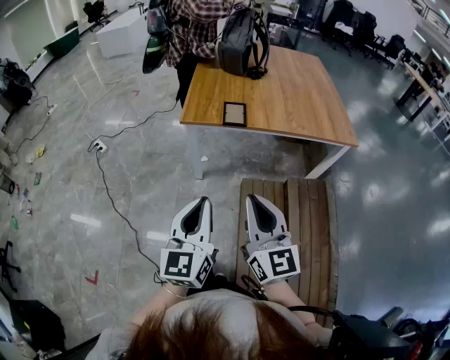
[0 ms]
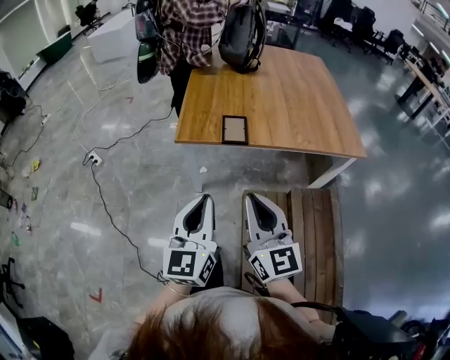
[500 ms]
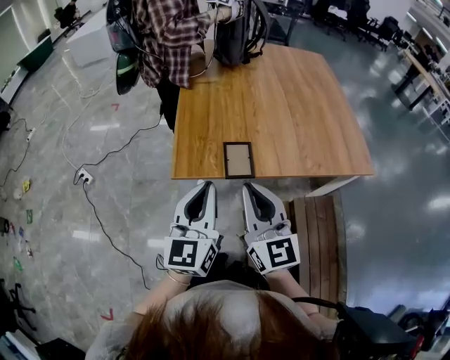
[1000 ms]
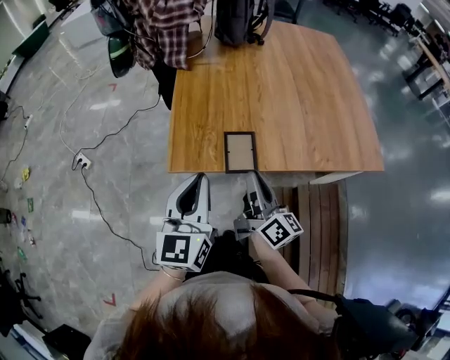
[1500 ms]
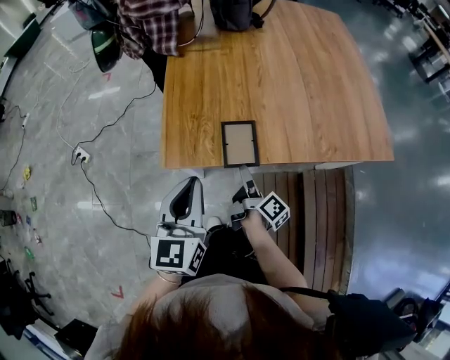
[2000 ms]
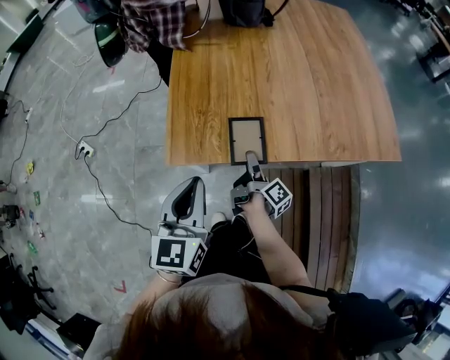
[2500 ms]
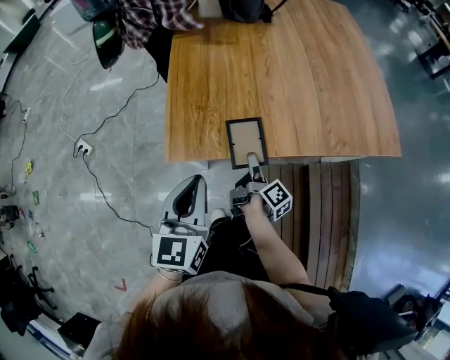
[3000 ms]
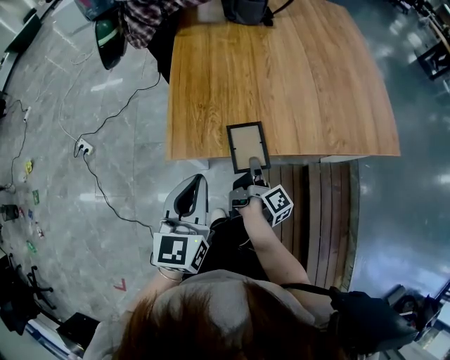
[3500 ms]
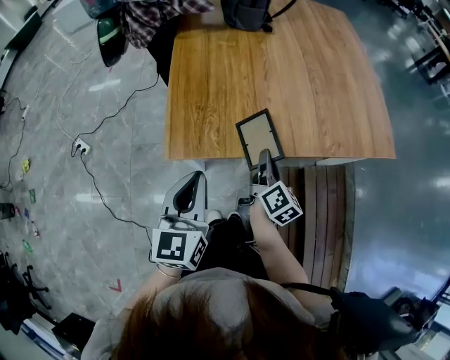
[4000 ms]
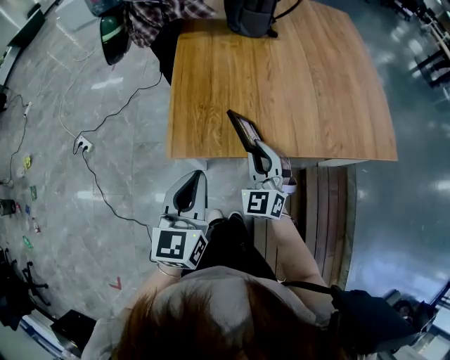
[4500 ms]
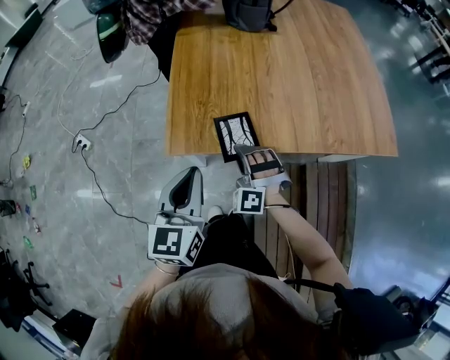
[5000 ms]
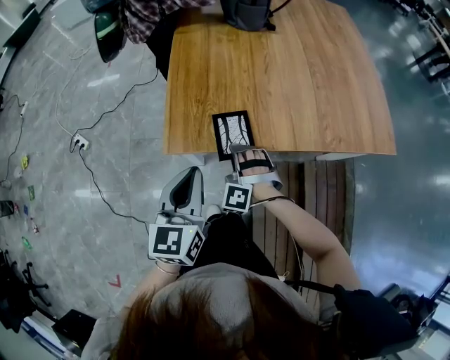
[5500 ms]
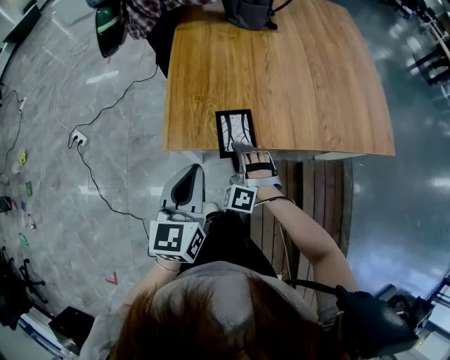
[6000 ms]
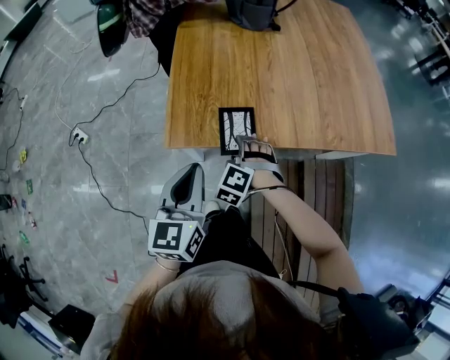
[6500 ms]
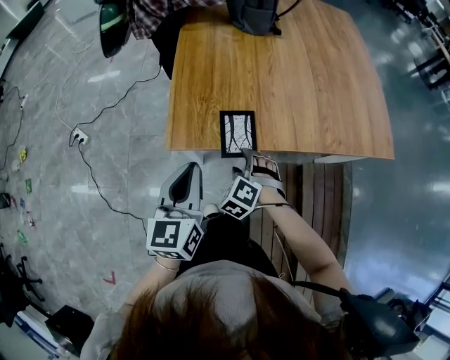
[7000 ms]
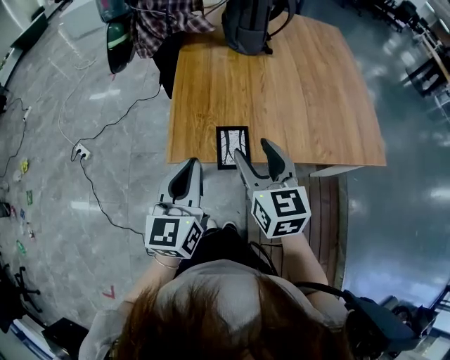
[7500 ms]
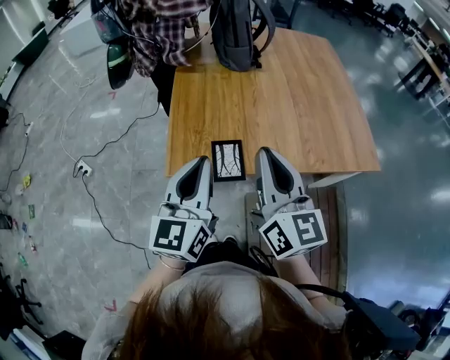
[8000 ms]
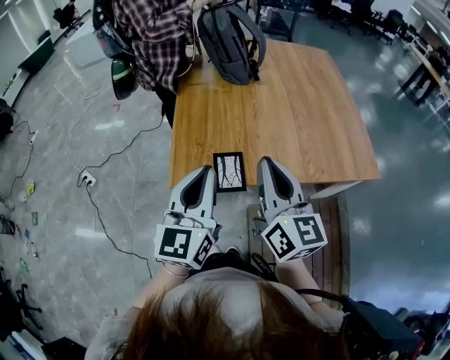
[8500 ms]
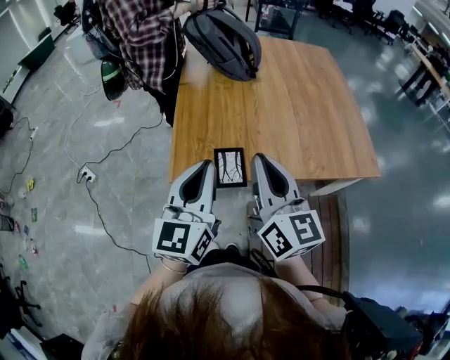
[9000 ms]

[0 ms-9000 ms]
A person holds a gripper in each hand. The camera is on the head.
0 ms to 2000 ms: The pair of grippers is taken forward, about 40 cm. The right gripper goes some 30 cm downward, rotates around the line of its fingers by about 80 degrees, clockwise from behind, and opens its fingers.
2000 ms to 4500 ms: The right gripper moves upward, some 10 cm, rotates around the line of its fingers by roughly 120 degrees, counterclockwise from behind, and closes up.
4500 ms to 7000 ms: The right gripper moves downward and backward, about 10 cm, angles its fingers downward, by about 40 degrees, and opens its fingers.
7000 ms to 9000 ms: The left gripper heads upward, covering roughly 15 cm, while the right gripper heads upward, covering about 35 cm, tips its fingers upward by approximately 60 degrees, and closes.

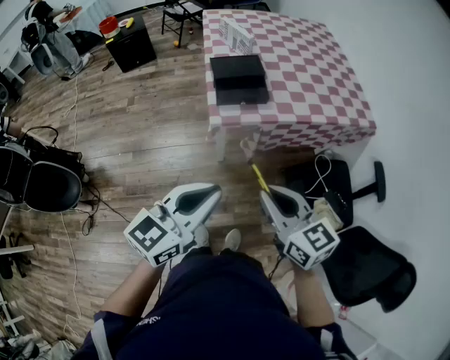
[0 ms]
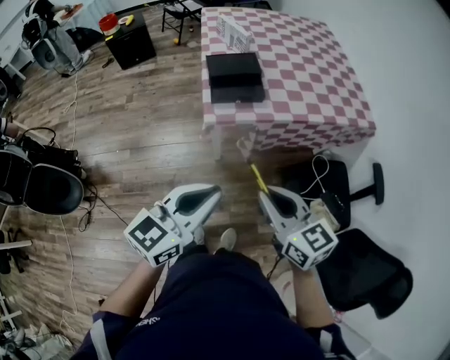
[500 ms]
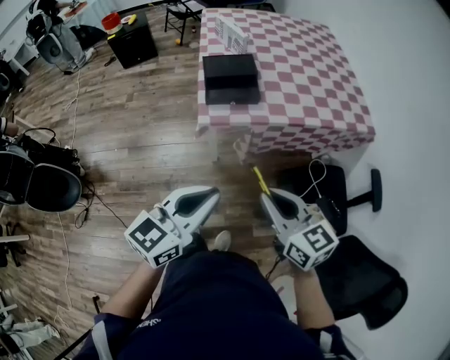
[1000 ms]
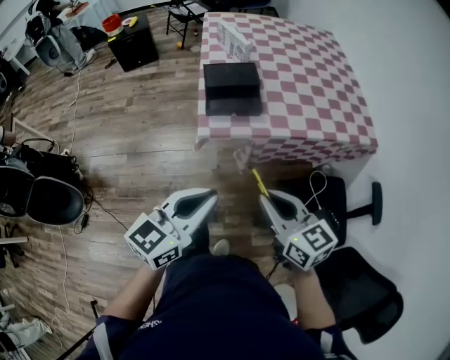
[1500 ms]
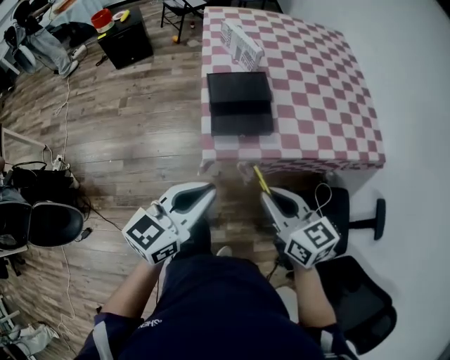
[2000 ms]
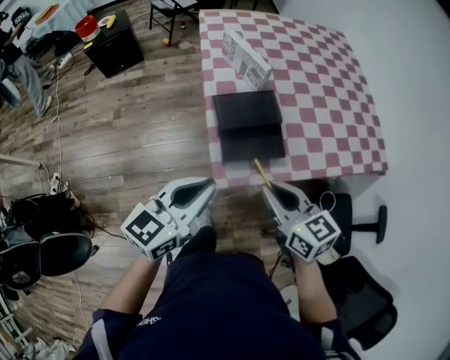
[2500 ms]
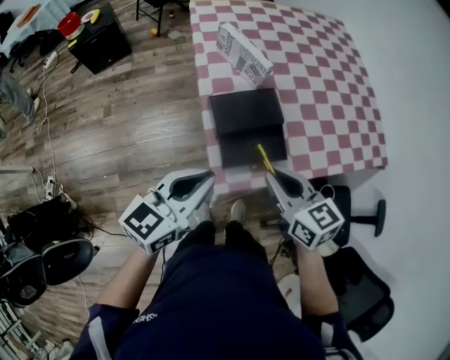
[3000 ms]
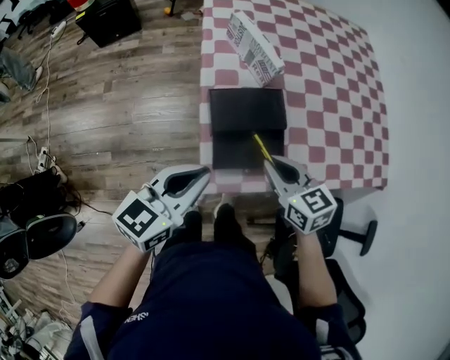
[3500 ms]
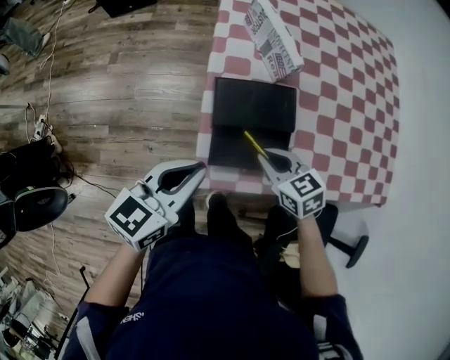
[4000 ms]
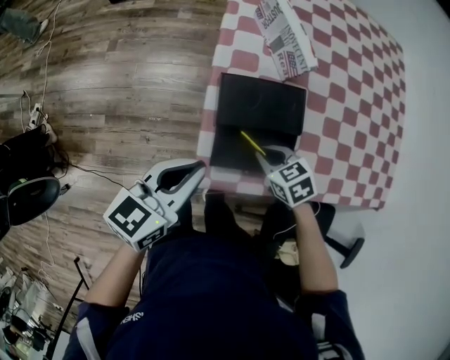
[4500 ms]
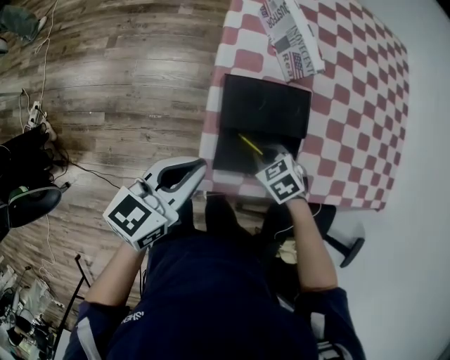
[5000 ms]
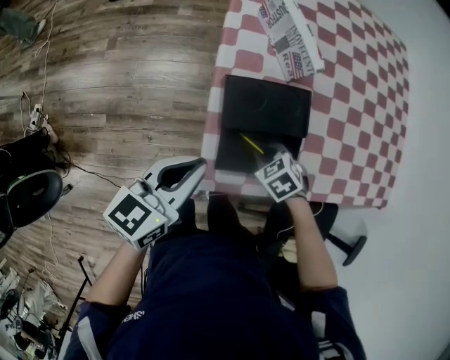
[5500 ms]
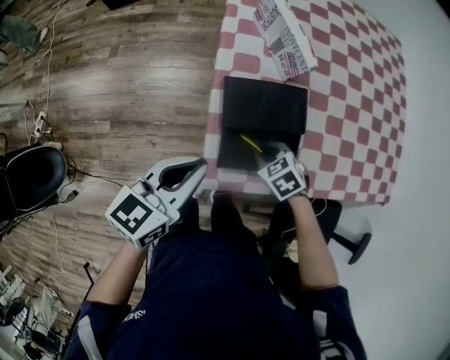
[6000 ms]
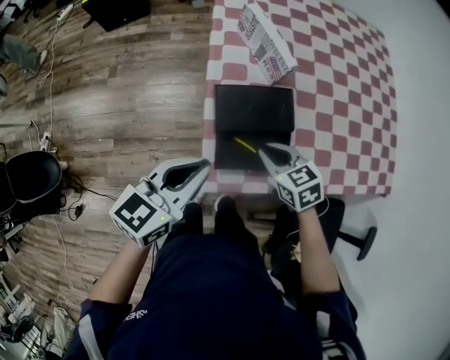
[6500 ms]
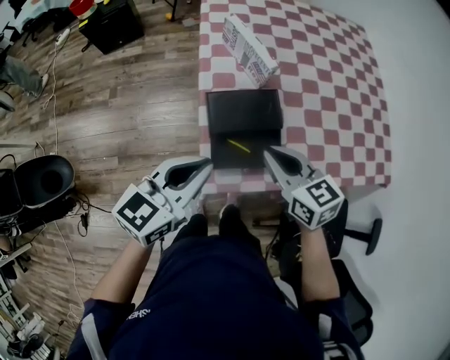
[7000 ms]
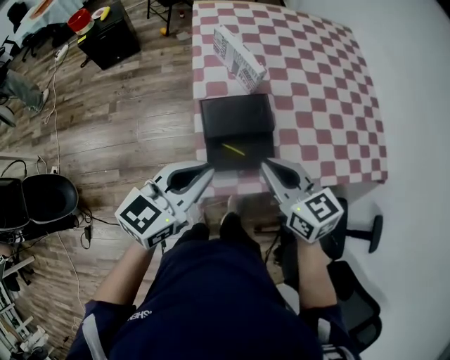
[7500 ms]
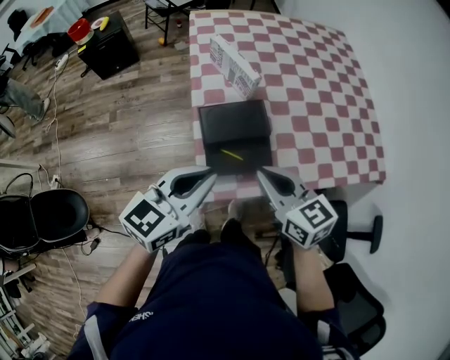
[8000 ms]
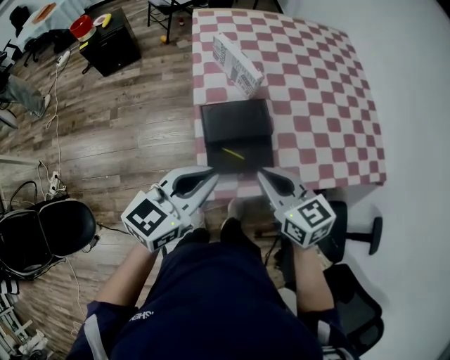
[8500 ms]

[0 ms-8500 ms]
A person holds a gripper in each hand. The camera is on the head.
0 ms to 2000 ms: Both grippers move forward, roughly 20 cm.
2000 ms to 4000 ms: The left gripper goes roughly 25 cm forward, while the right gripper shifts approximately 30 cm forward and downward, and rotates approximately 30 degrees.
4000 ms to 6500 ms: The right gripper goes downward and returns, some 10 cm each way.
6500 ms to 8500 ms: The left gripper travels upward by roughly 5 cm. Meanwhile the right gripper is displaced upward and backward by approximately 15 cm, and changes its angle by roughly 20 degrees.

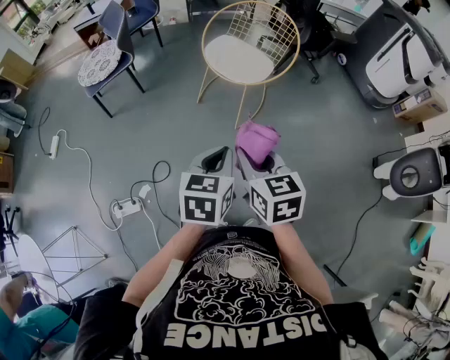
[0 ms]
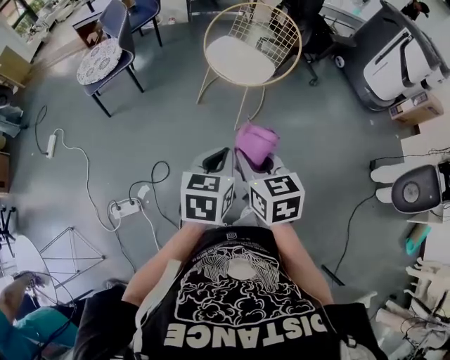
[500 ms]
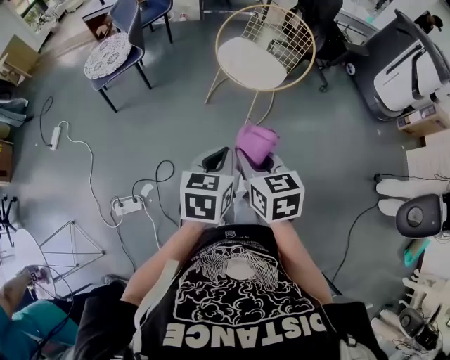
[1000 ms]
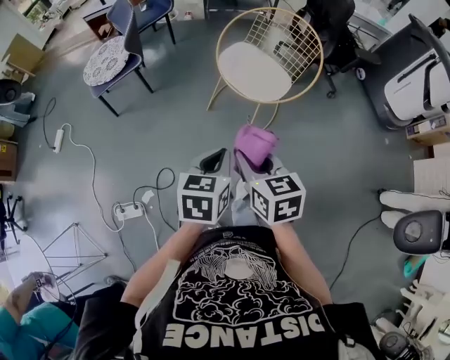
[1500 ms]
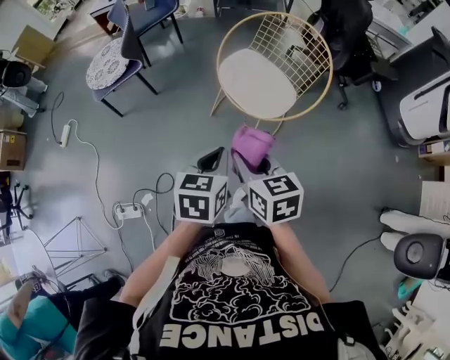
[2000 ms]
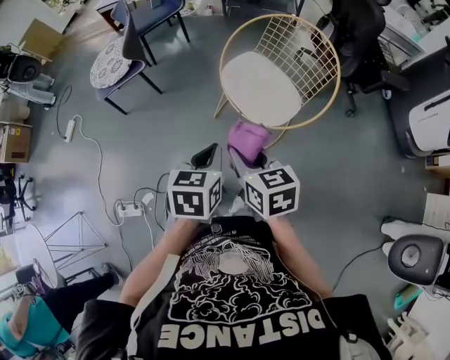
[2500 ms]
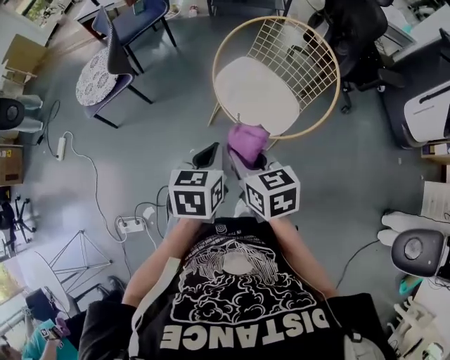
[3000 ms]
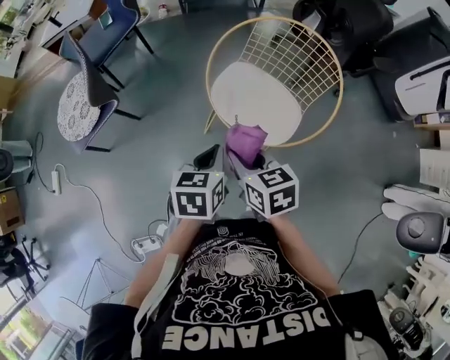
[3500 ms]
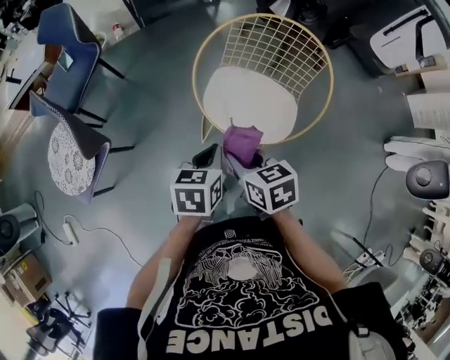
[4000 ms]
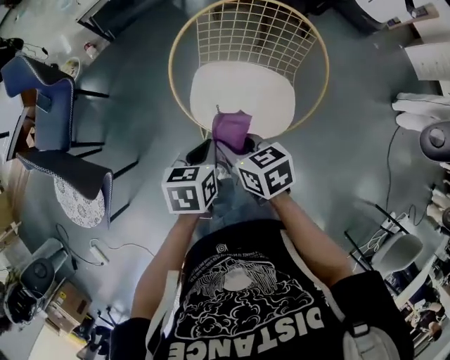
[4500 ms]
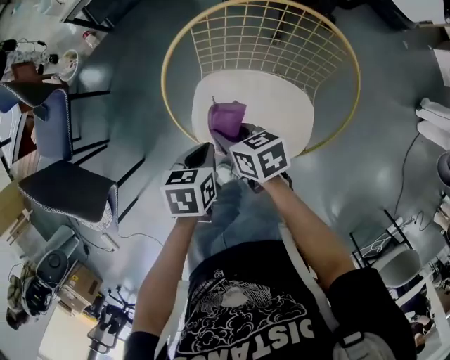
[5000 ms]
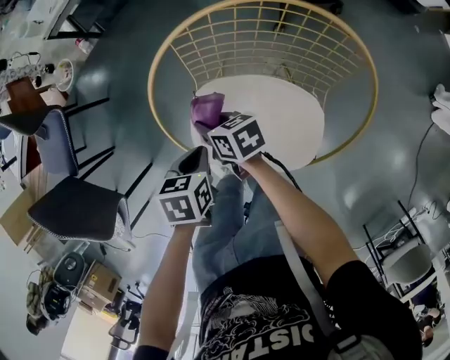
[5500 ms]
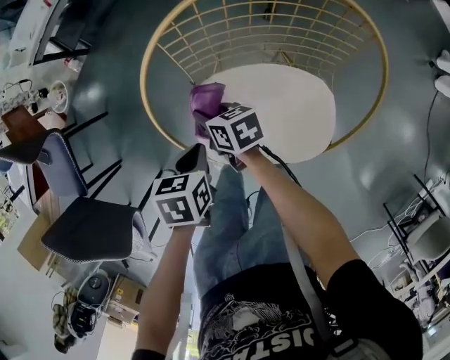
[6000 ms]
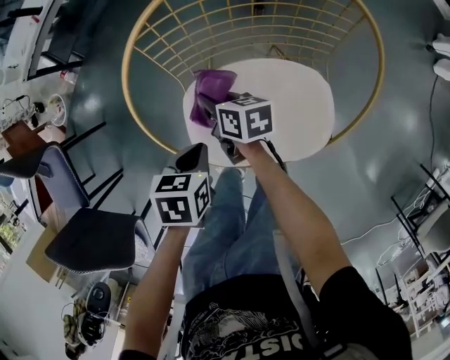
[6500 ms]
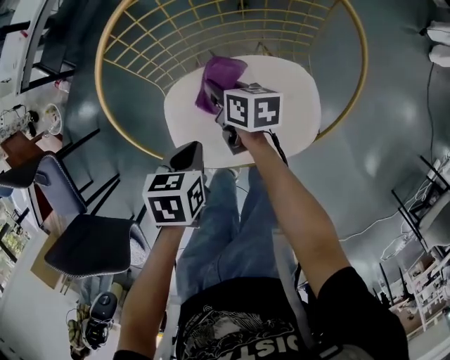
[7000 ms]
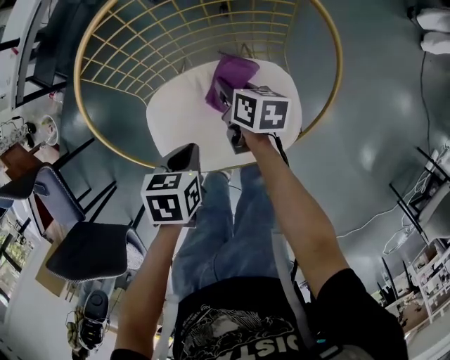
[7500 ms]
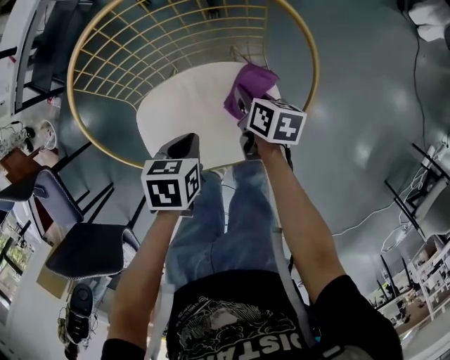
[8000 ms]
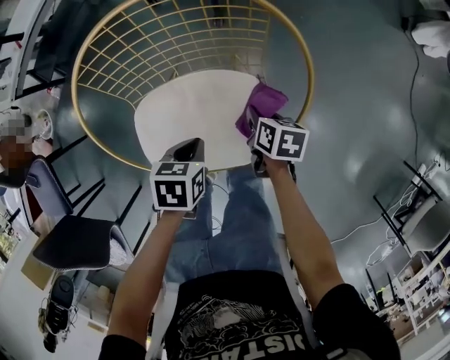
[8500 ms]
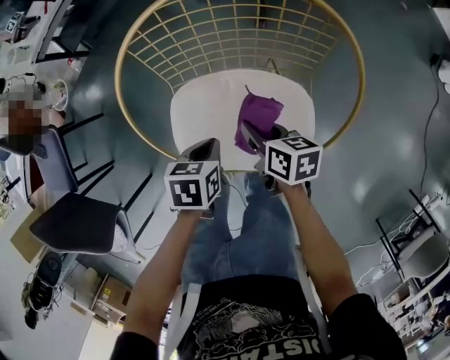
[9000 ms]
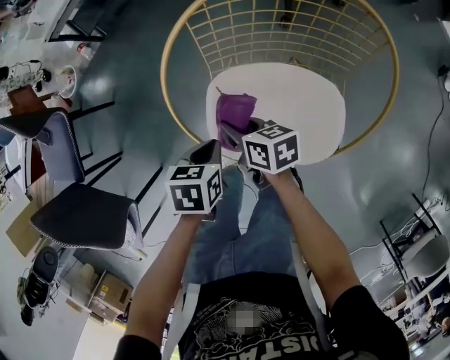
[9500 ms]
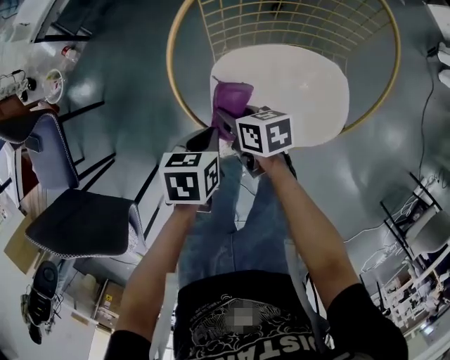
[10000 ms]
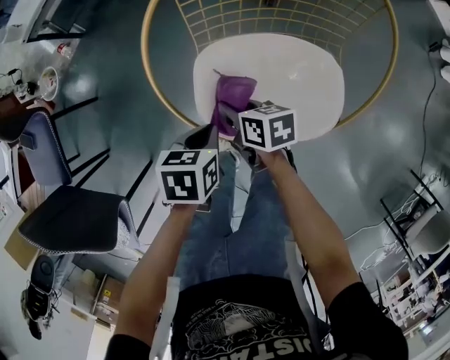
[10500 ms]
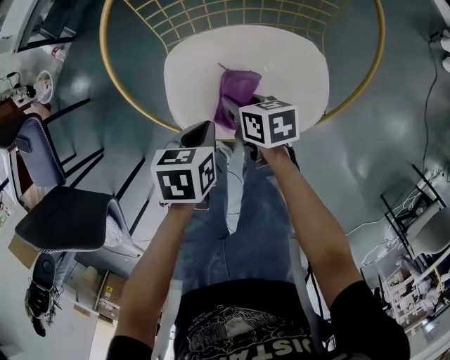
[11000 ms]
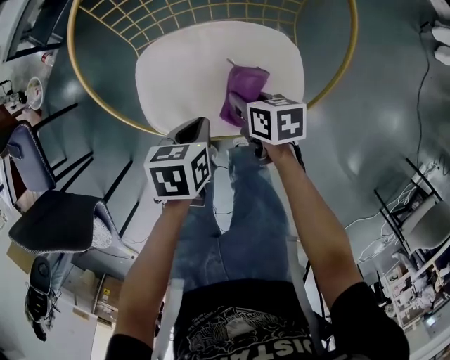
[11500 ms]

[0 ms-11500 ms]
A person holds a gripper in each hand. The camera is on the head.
0 ms to 2000 ms: Both grippers move forward, approximately 20 cm.
2000 ms to 4000 ms: The right gripper changes place by approximately 30 cm, and turns by some 20 degrees. Meanwhile the left gripper ends up some 35 cm from where it was, and rotates some 30 degrees.
4000 ms to 6000 ms: The two grippers go roughly 35 cm forward and downward. The right gripper swivels roughly 30 degrees. Meanwhile the left gripper turns by some 30 degrees.
6000 ms to 7500 ms: The right gripper shifts by some 20 cm, and changes its angle by about 40 degrees, while the left gripper changes place by about 10 cm.
7500 ms to 9500 ms: The right gripper ends up roughly 20 cm from where it was, and swivels roughly 30 degrees. Meanwhile the left gripper ends up some 10 cm from where it was.
9500 ms to 11500 ms: The left gripper shifts about 15 cm to the right and backward. The right gripper shifts some 20 cm to the right.
